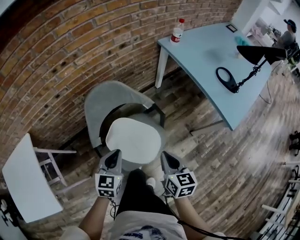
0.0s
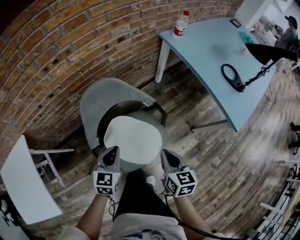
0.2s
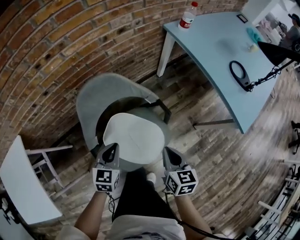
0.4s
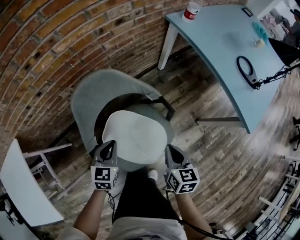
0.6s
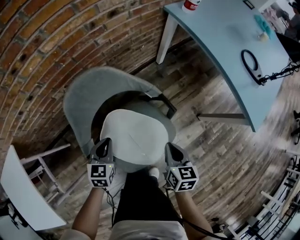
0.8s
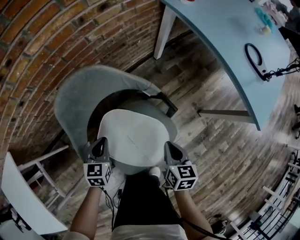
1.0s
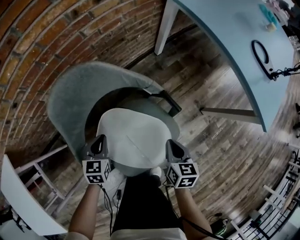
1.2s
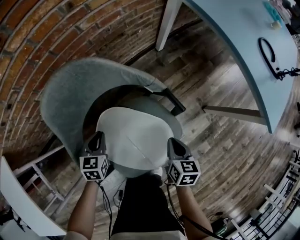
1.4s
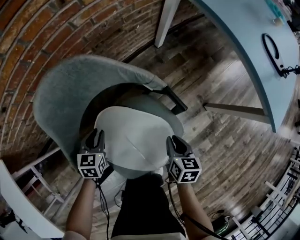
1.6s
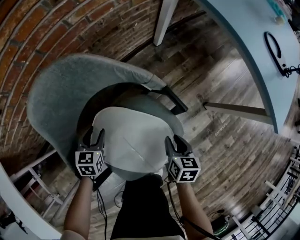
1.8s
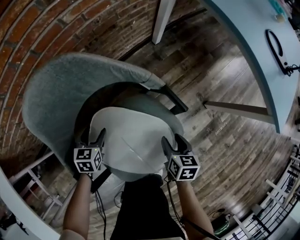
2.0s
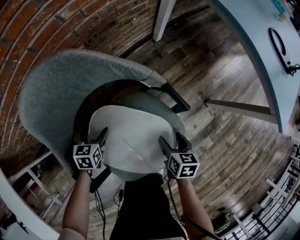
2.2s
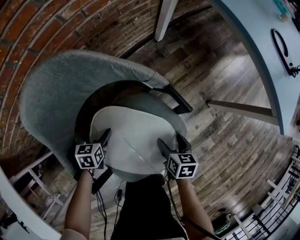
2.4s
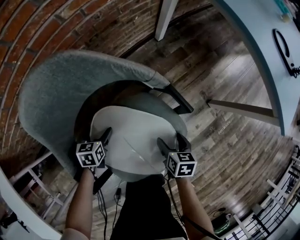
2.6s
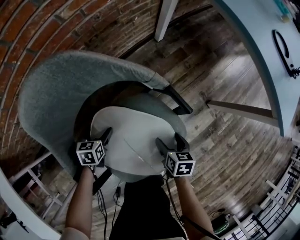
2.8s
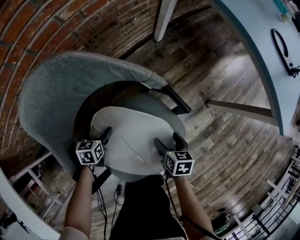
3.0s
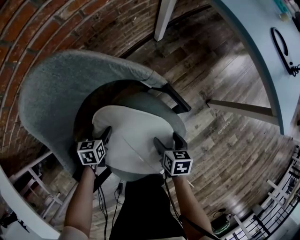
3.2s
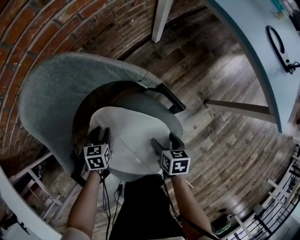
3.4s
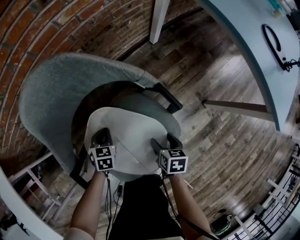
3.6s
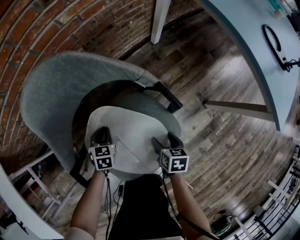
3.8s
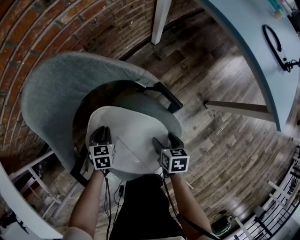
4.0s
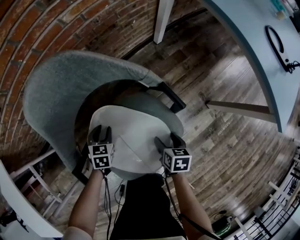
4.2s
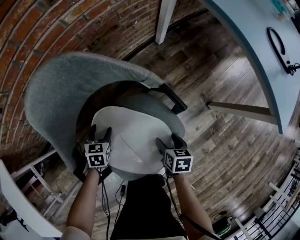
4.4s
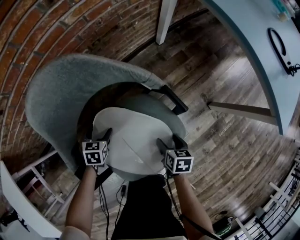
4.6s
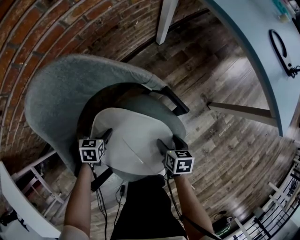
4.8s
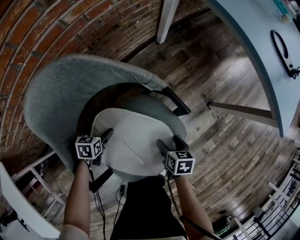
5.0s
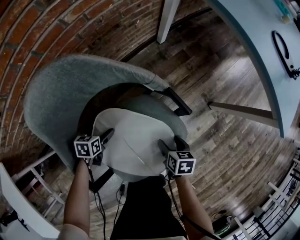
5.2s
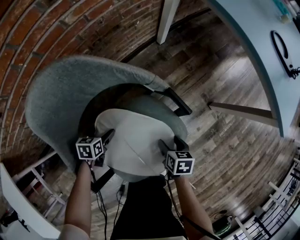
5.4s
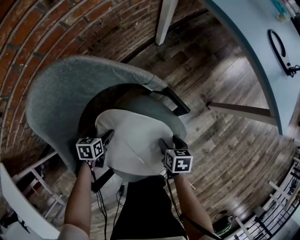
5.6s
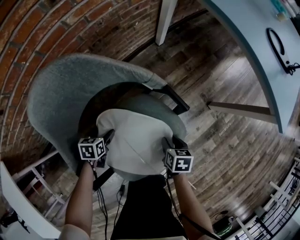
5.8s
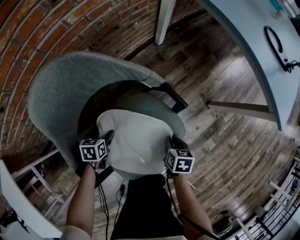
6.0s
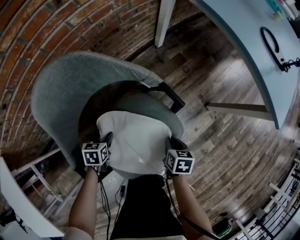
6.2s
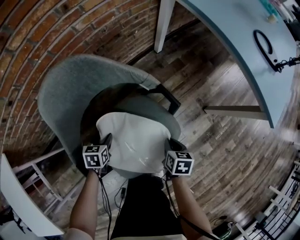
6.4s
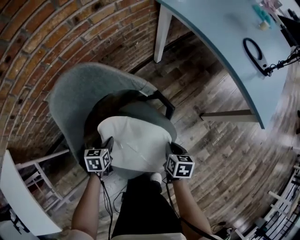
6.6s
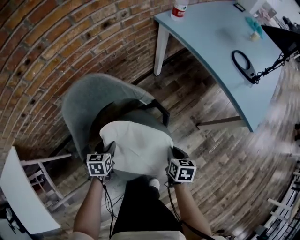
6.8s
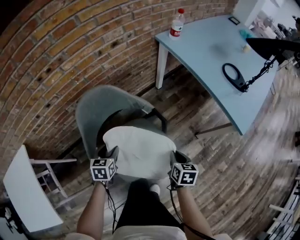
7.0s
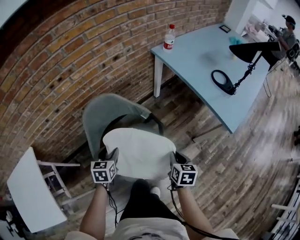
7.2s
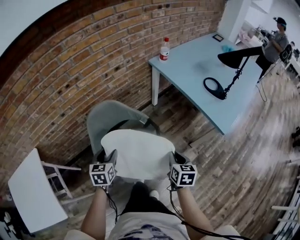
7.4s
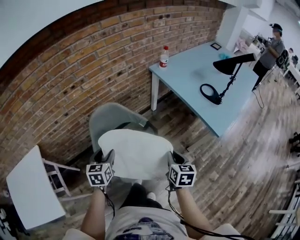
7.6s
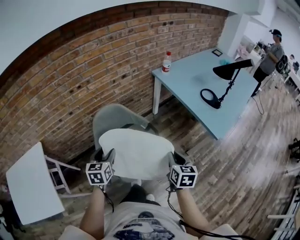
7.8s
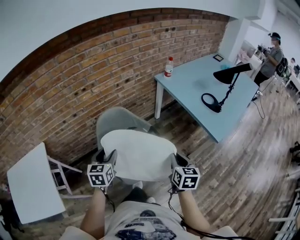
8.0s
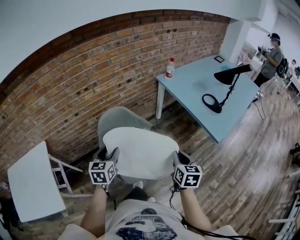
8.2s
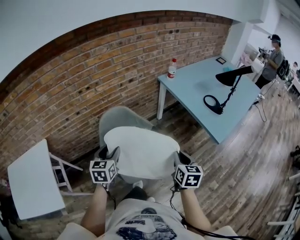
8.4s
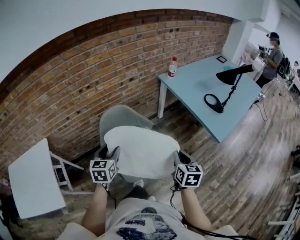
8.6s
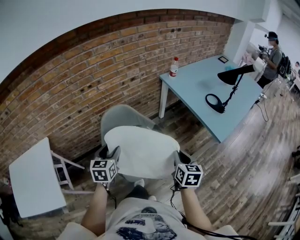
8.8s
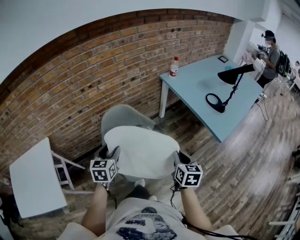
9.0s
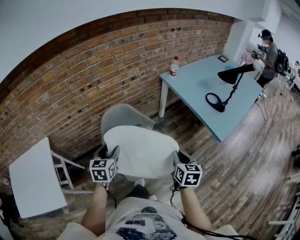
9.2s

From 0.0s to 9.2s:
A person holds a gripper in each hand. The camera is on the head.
From 0.0s to 1.6s: The left gripper travels downward and forward by some 40 cm; the right gripper is displaced downward by roughly 35 cm, and rotates about 20 degrees.
From 1.6s to 3.0s: Both grippers travel together downward, roughly 10 cm. The right gripper opens its fingers, while the left gripper opens its fingers.
From 3.0s to 4.6s: The left gripper closes and opens again.
From 4.6s to 6.2s: The right gripper closes.
From 6.2s to 7.6s: Both grippers travel together upward, about 50 cm. The right gripper turns by some 30 degrees, while the left gripper changes its angle by roughly 30 degrees.
From 7.6s to 9.2s: The two grippers go about 5 cm upward.

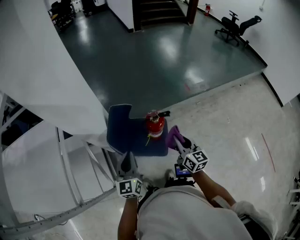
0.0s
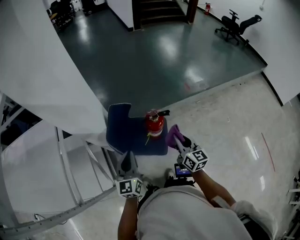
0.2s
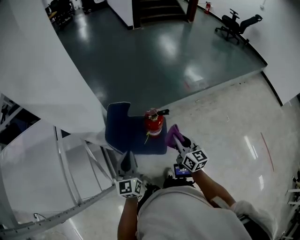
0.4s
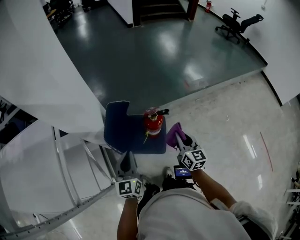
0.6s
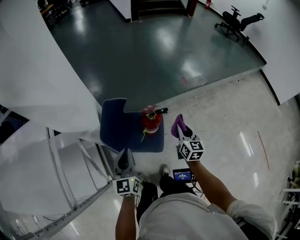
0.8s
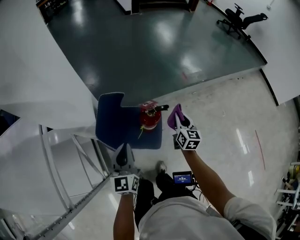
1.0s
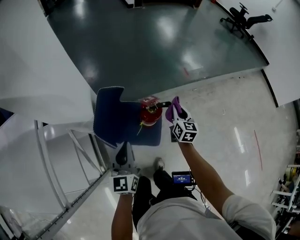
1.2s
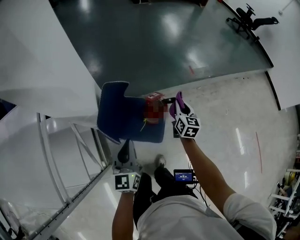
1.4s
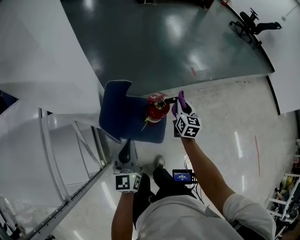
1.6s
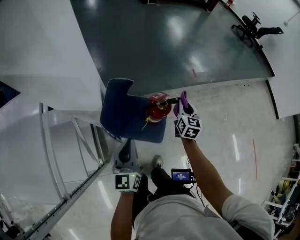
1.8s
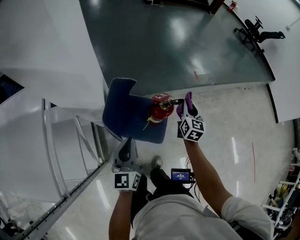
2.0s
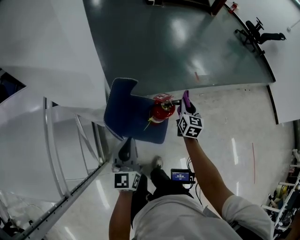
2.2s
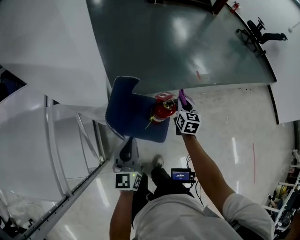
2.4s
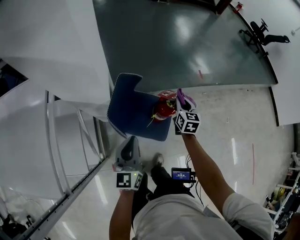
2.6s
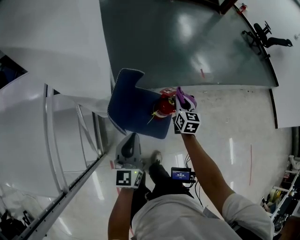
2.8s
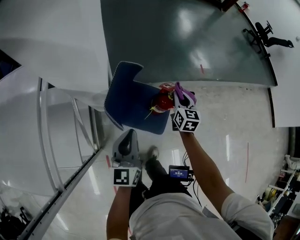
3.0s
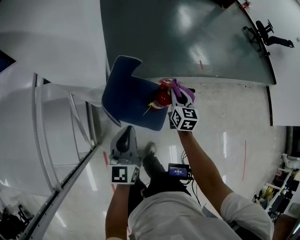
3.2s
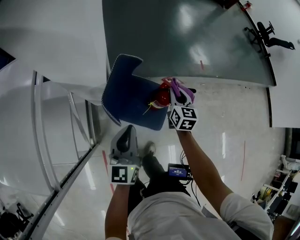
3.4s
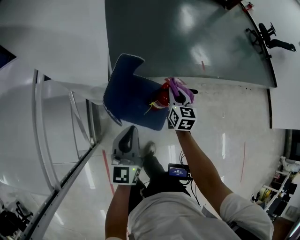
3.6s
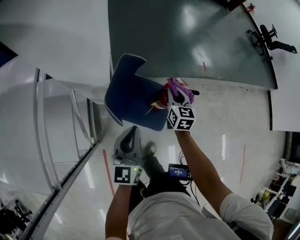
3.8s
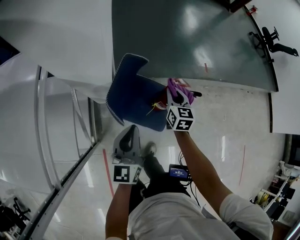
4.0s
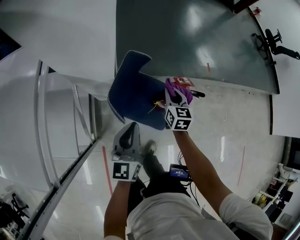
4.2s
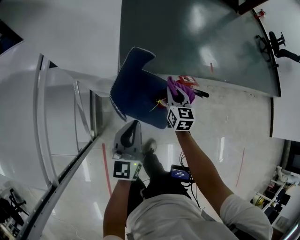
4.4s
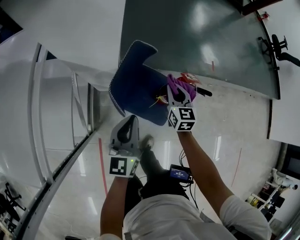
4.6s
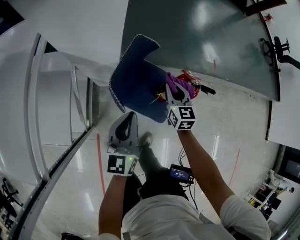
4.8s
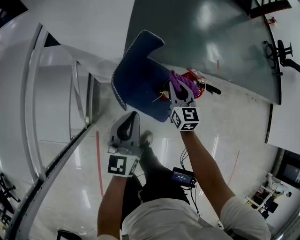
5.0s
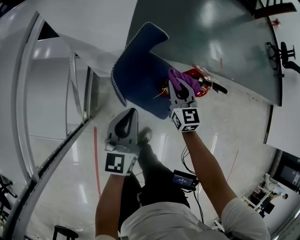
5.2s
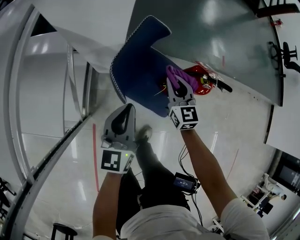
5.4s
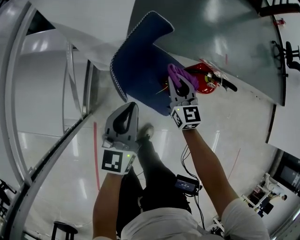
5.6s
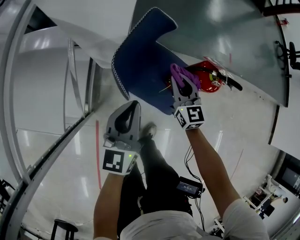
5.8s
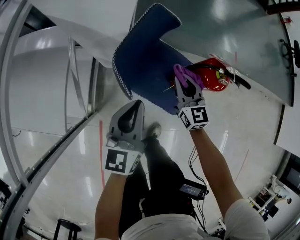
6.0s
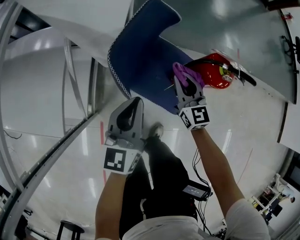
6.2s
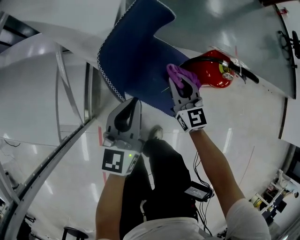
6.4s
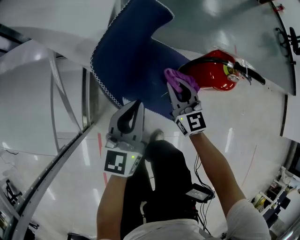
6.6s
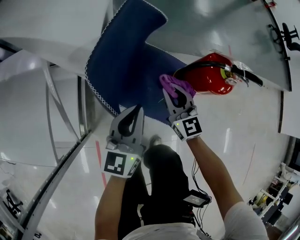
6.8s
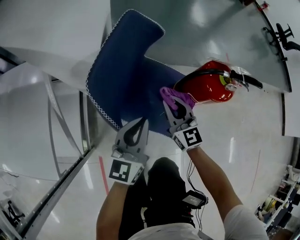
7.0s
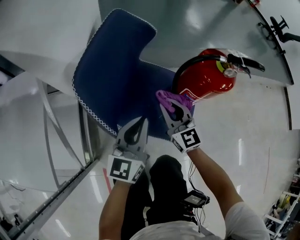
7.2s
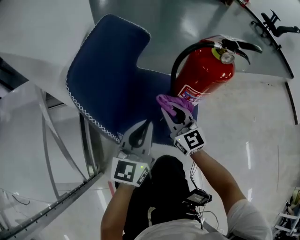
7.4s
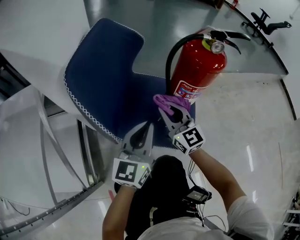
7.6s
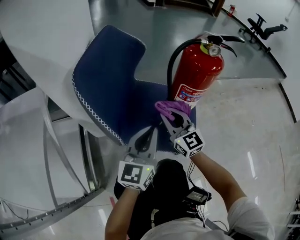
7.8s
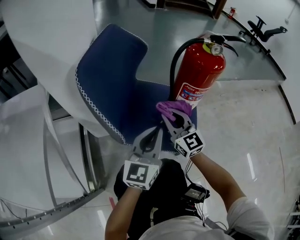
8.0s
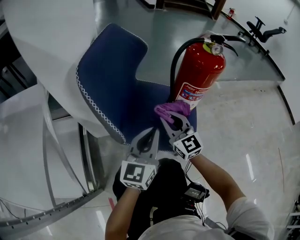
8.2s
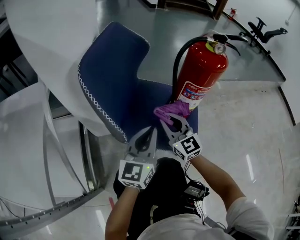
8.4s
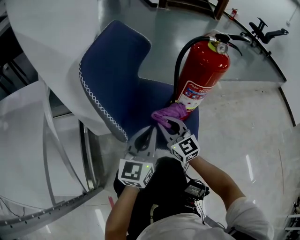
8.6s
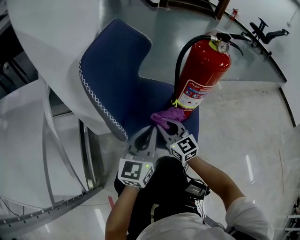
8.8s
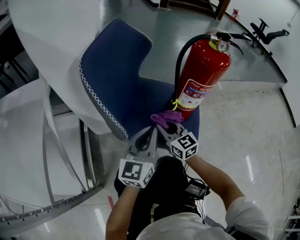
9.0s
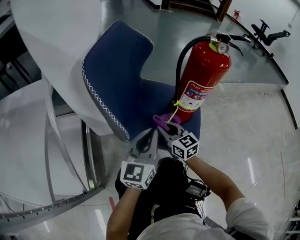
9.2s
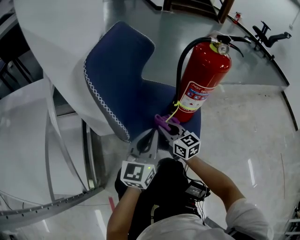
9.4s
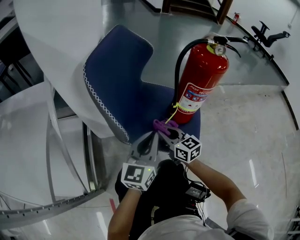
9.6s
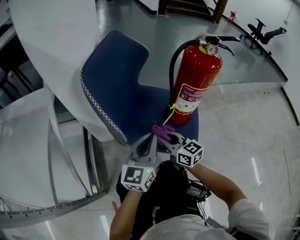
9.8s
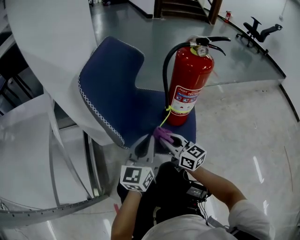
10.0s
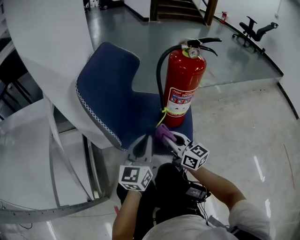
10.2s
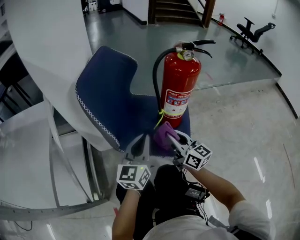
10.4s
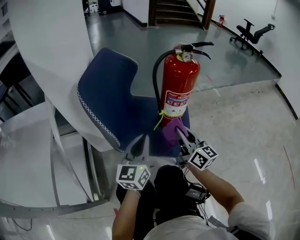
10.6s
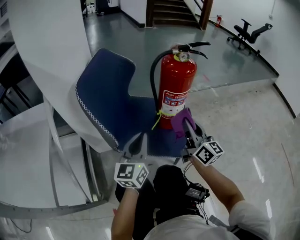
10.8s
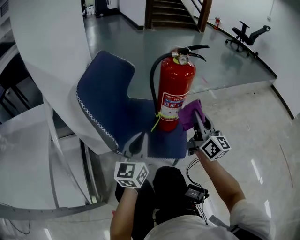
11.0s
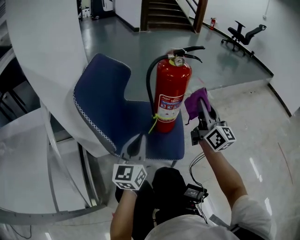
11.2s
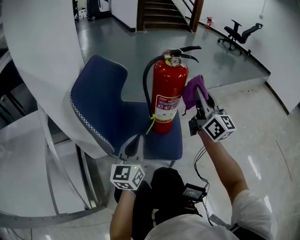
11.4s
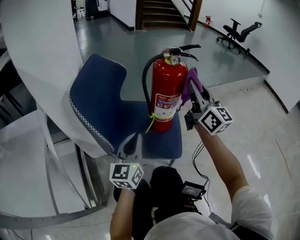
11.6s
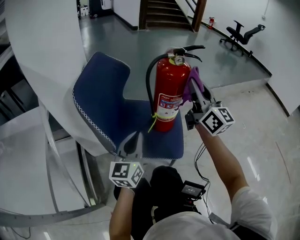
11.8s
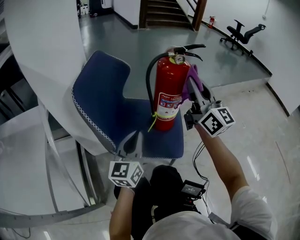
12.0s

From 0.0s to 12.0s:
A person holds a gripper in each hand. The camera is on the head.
From 0.0s to 1.6s: The left gripper ends up approximately 5 cm from where it was. The right gripper goes about 20 cm forward and downward, and turns by approximately 20 degrees.
From 1.6s to 3.0s: The right gripper moves to the left, roughly 10 cm.
From 3.0s to 4.4s: The right gripper shifts some 10 cm to the left.
From 4.4s to 6.0s: The two grippers go some 10 cm downward. The right gripper rotates some 20 degrees.
From 6.0s to 7.6s: The left gripper is displaced downward and to the right by approximately 20 cm, and turns by about 30 degrees. The right gripper travels downward by approximately 15 cm.
From 7.6s to 9.0s: The right gripper shifts about 10 cm downward.
From 9.0s to 10.4s: The right gripper goes roughly 10 cm upward, to the right and backward, and swivels some 20 degrees.
From 10.4s to 12.0s: The right gripper moves upward, about 25 cm, and turns by roughly 30 degrees.

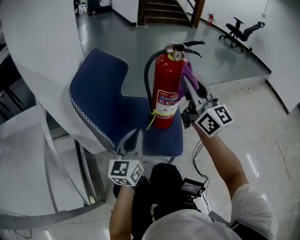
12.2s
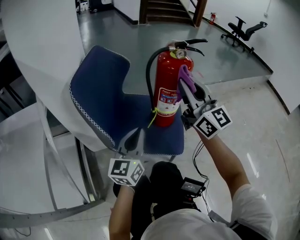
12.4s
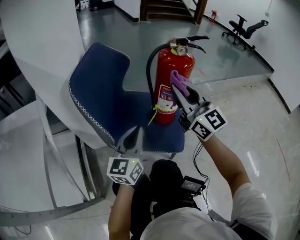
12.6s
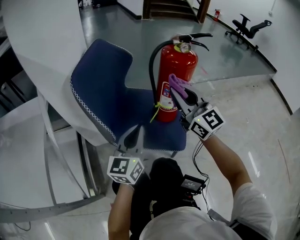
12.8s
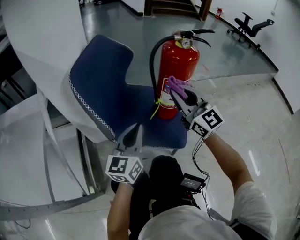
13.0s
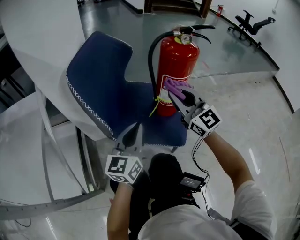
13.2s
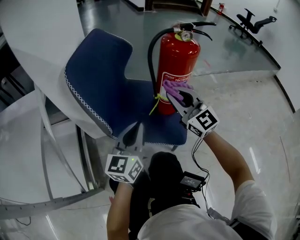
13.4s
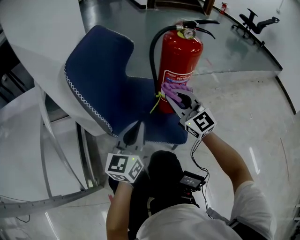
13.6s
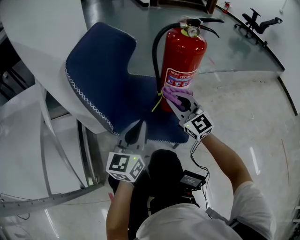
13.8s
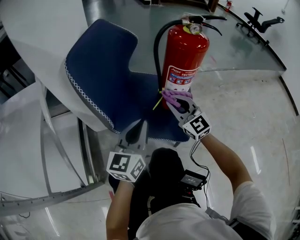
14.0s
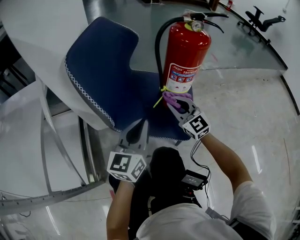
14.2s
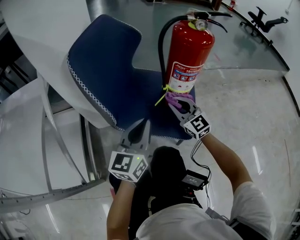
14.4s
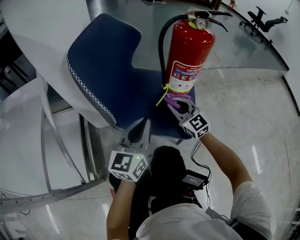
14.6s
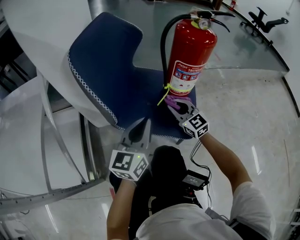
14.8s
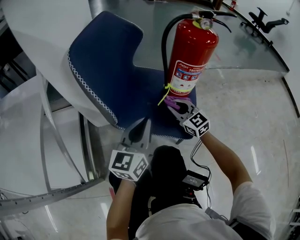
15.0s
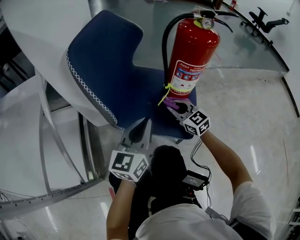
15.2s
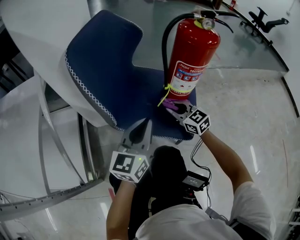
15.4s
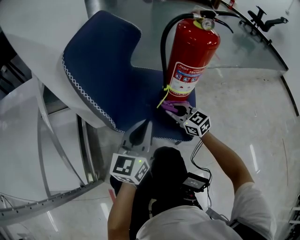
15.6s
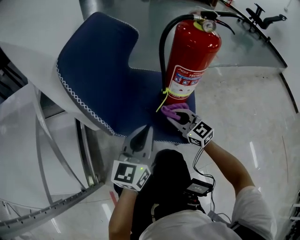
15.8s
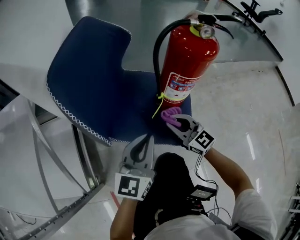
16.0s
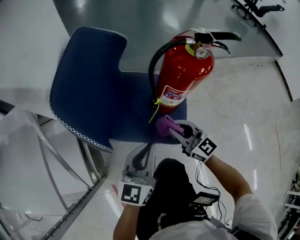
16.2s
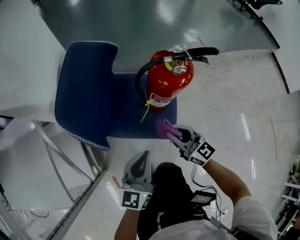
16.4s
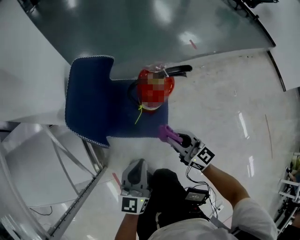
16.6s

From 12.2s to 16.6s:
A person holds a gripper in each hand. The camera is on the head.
From 12.2s to 13.6s: The right gripper heads downward, covering about 20 cm, and swivels about 30 degrees.
From 13.6s to 15.2s: The right gripper moves downward, approximately 15 cm, and turns by roughly 20 degrees.
From 15.2s to 16.6s: Both grippers travel together upward and backward, approximately 25 cm. The right gripper swivels some 20 degrees.
